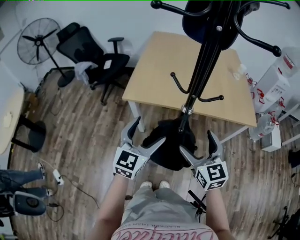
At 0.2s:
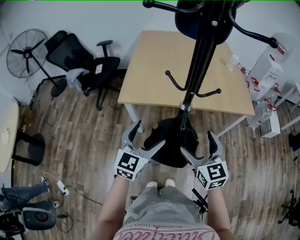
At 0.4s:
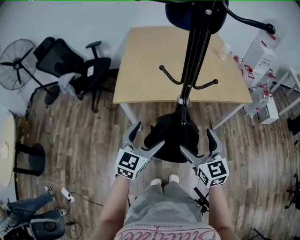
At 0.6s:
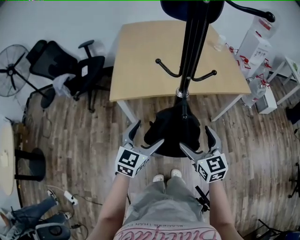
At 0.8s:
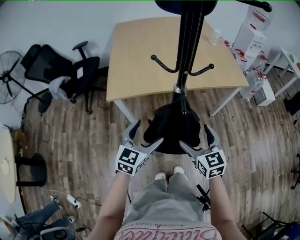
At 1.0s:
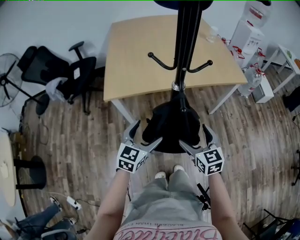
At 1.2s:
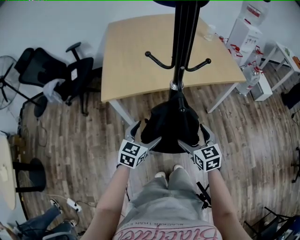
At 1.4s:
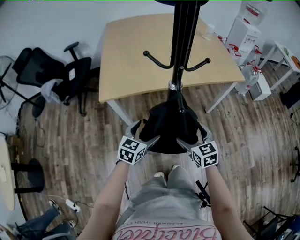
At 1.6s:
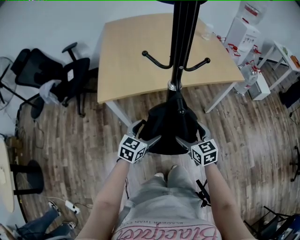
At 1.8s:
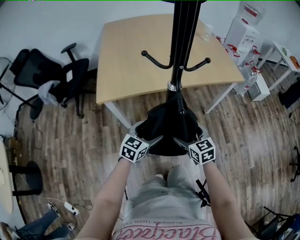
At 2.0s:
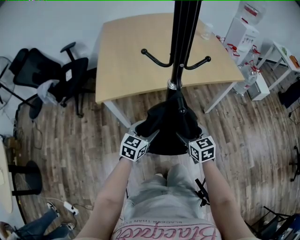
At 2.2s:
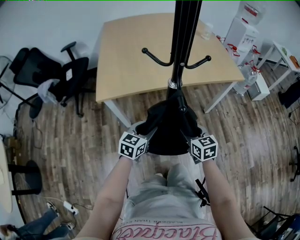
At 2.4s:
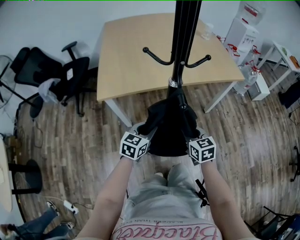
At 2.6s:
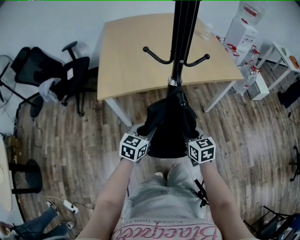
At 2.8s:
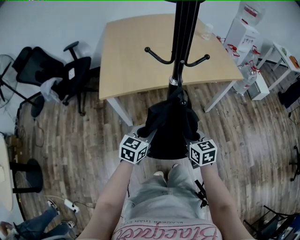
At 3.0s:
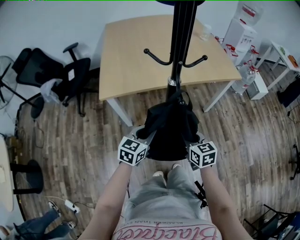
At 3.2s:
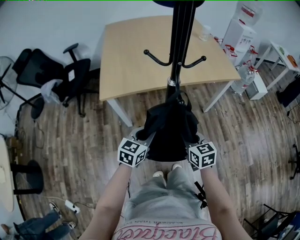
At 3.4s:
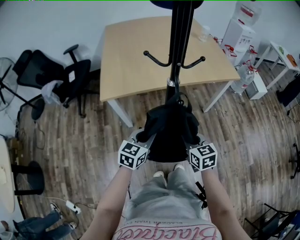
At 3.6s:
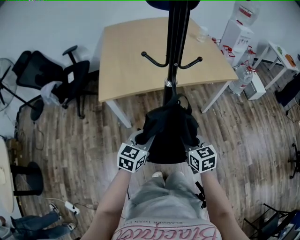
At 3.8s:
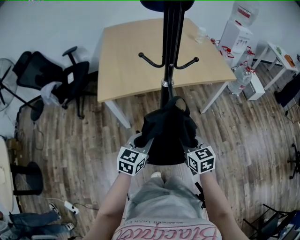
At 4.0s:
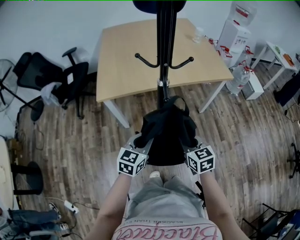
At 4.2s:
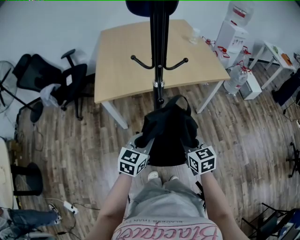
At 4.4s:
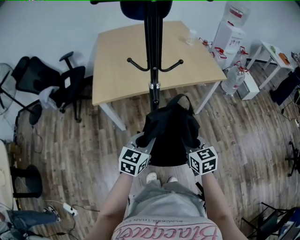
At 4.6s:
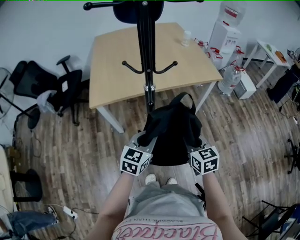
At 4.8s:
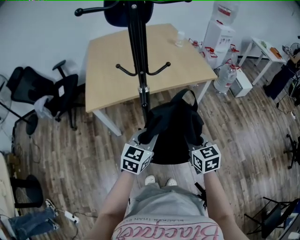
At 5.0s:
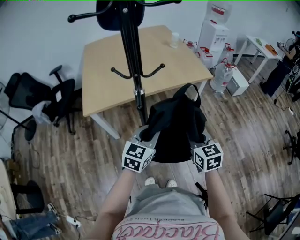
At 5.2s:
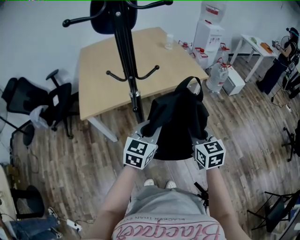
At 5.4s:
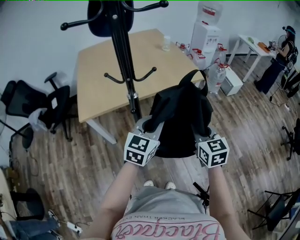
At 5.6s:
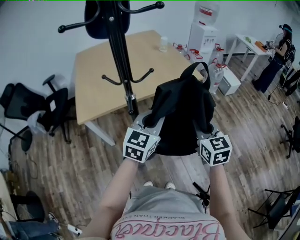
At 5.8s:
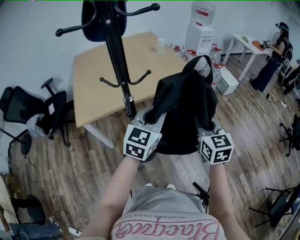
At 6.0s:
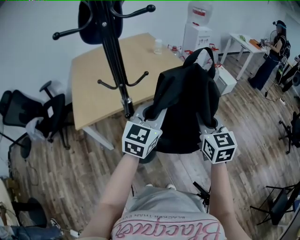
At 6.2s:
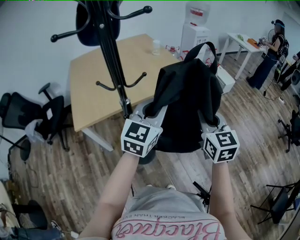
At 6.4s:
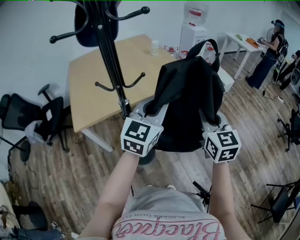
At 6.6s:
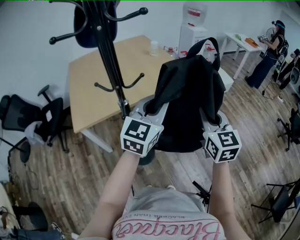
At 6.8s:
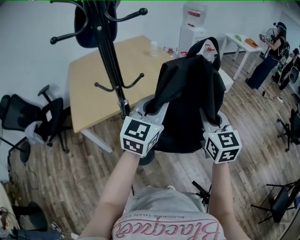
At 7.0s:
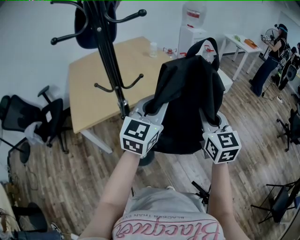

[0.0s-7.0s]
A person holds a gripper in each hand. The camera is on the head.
0.0s to 1.4s: The grippers both shift downward by some 20 cm. The right gripper changes its angle by roughly 20 degrees. Meanwhile the left gripper changes its angle by about 30 degrees.
1.4s to 2.8s: The left gripper closes up; the right gripper closes up.
2.8s to 4.2s: Both grippers travel together upward and backward, some 10 cm.
4.2s to 5.6s: The left gripper goes approximately 20 cm upward, to the right and forward, and swivels about 20 degrees. The right gripper is displaced upward and to the right by roughly 20 cm, and swivels approximately 20 degrees.
5.6s to 7.0s: The two grippers go roughly 10 cm upward.

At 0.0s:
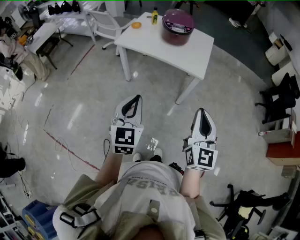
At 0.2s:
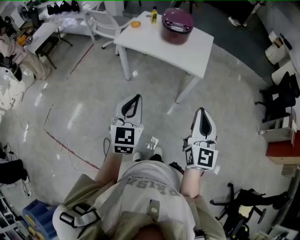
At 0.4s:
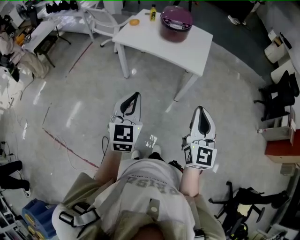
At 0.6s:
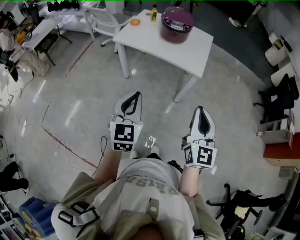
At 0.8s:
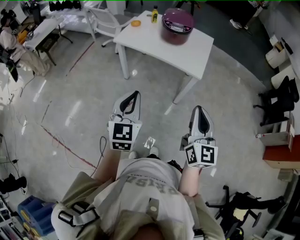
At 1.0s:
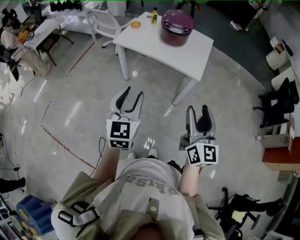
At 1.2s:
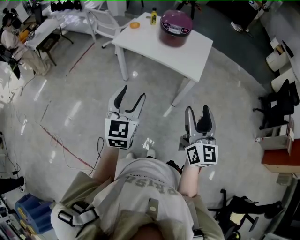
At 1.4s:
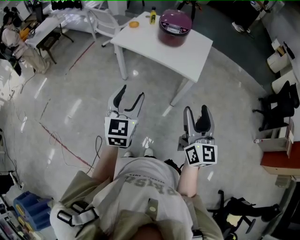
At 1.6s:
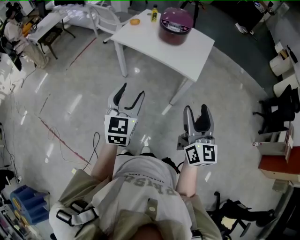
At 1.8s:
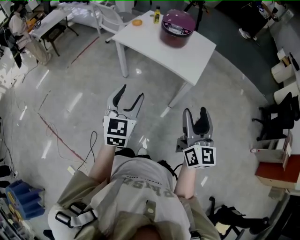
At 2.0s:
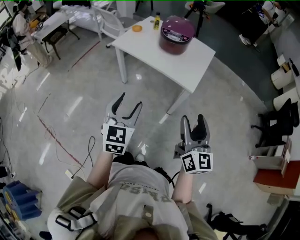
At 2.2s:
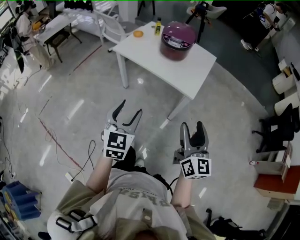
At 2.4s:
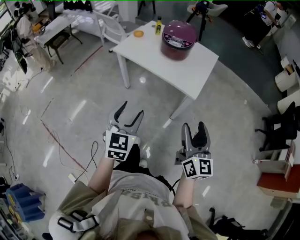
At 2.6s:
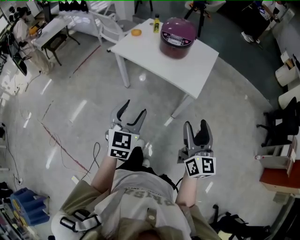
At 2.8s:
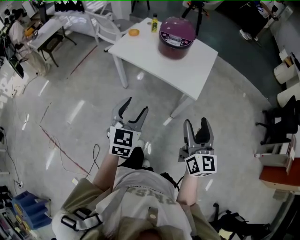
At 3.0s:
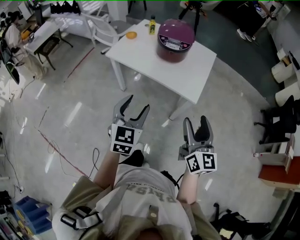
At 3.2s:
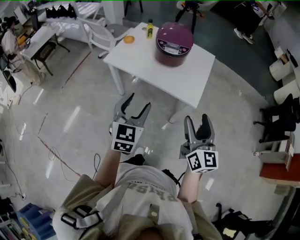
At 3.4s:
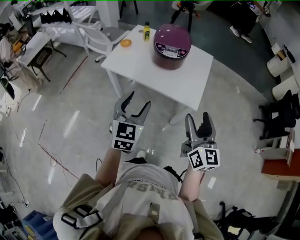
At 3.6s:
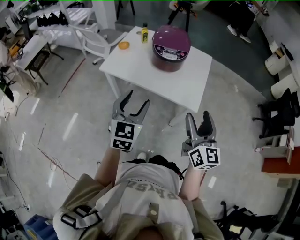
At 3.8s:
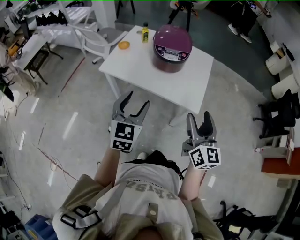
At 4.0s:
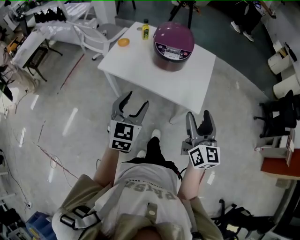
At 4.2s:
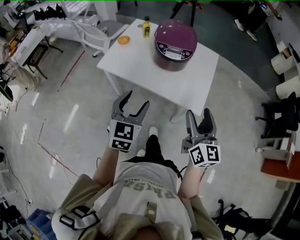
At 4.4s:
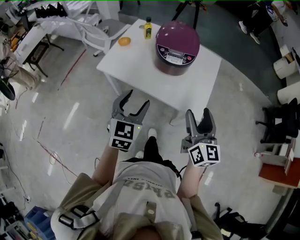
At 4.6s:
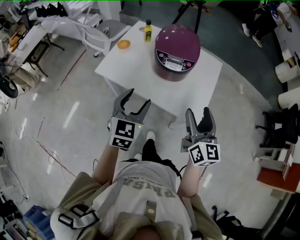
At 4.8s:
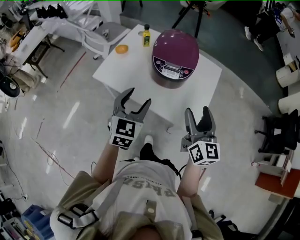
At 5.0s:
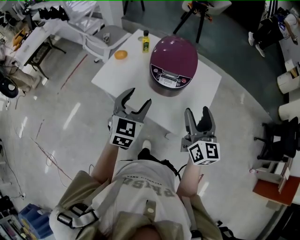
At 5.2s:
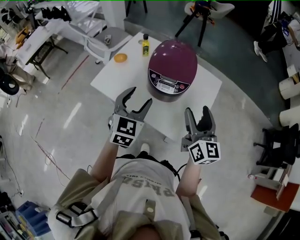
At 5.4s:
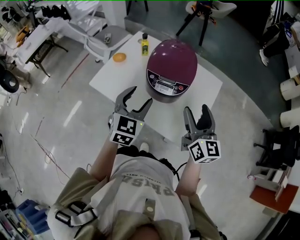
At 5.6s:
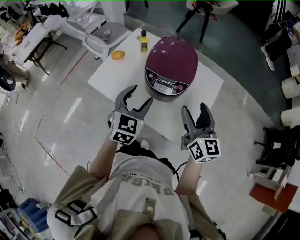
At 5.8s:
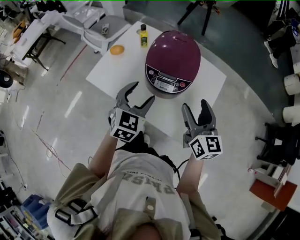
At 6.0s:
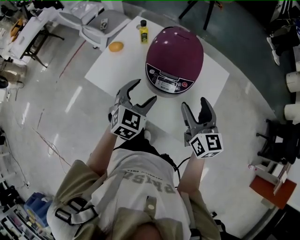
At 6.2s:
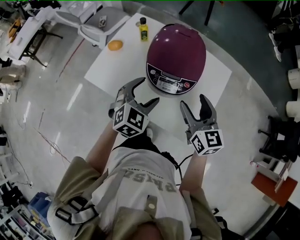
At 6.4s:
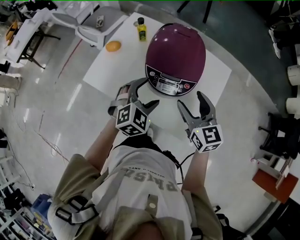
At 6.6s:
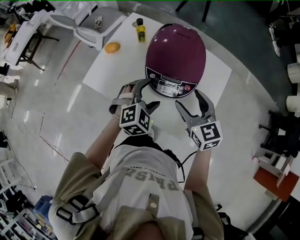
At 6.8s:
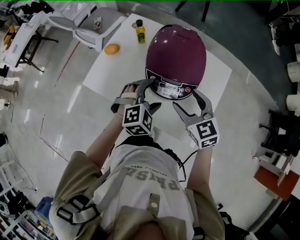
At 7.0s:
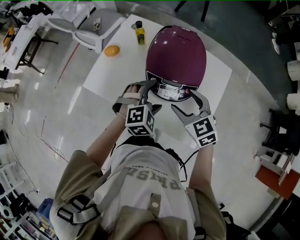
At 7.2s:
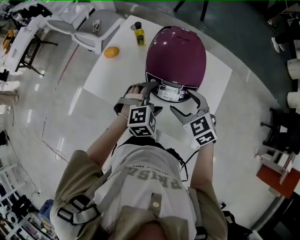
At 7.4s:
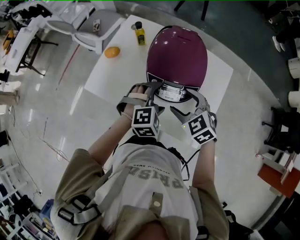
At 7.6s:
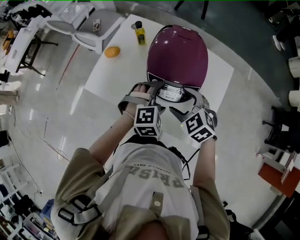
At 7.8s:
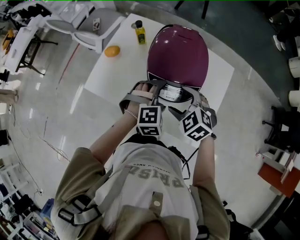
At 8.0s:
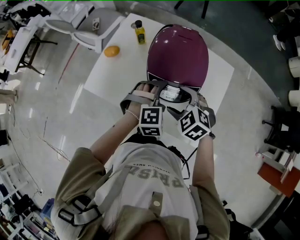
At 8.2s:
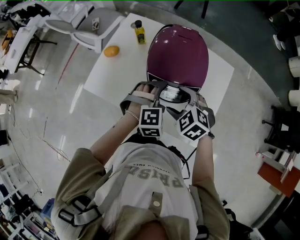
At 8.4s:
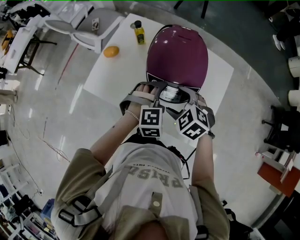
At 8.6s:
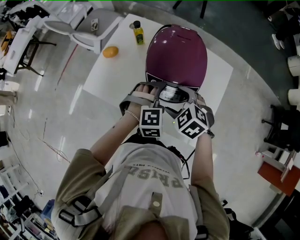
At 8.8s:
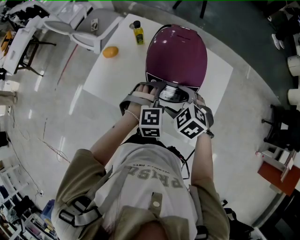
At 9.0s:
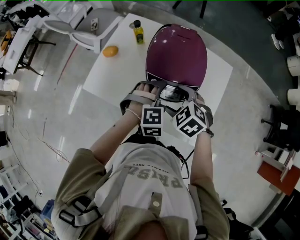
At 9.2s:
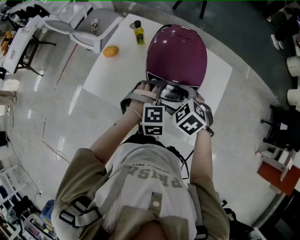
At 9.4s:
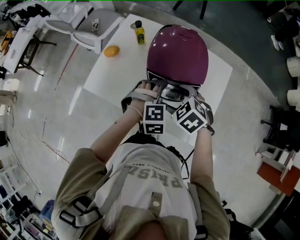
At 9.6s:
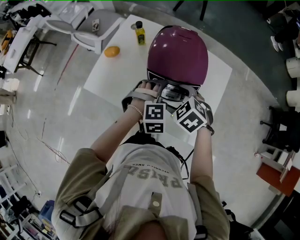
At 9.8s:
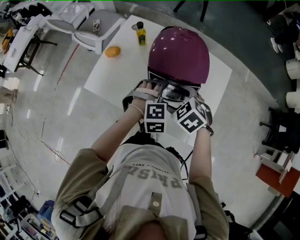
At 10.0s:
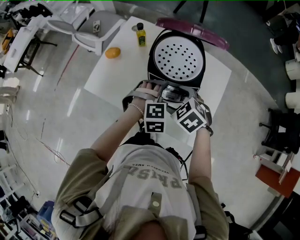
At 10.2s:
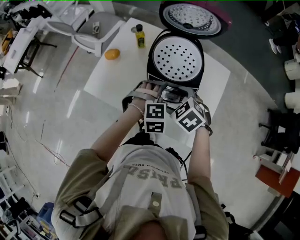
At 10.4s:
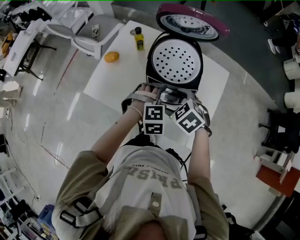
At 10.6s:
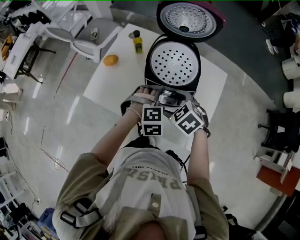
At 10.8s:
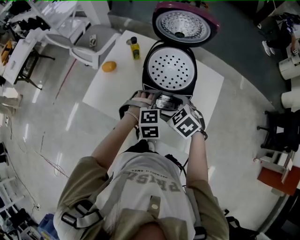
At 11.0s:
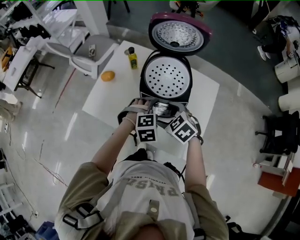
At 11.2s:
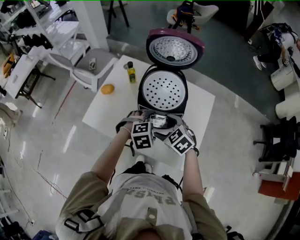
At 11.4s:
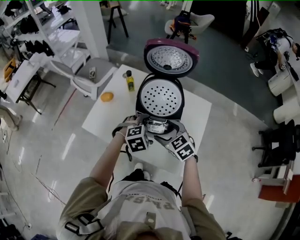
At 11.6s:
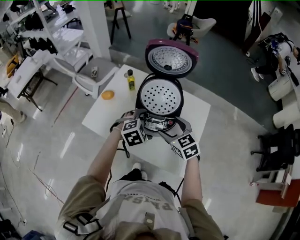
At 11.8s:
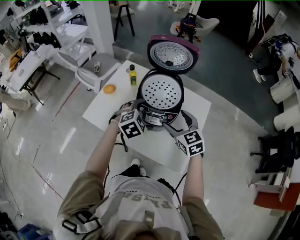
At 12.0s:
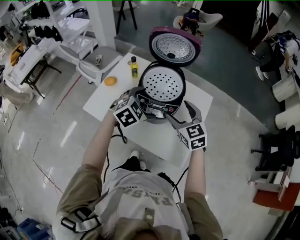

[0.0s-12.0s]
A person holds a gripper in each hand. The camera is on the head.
0.0s to 1.6s: The left gripper heads to the right, covering about 5 cm, and opens; the right gripper shifts some 10 cm to the right and forward, and opens its fingers.
1.6s to 3.0s: Both grippers travel together forward, some 15 cm.
3.0s to 4.4s: The grippers both shift forward by roughly 20 cm.
4.4s to 6.0s: The two grippers go some 25 cm forward.
6.0s to 7.6s: The right gripper heads downward and to the left, covering about 15 cm, and tilts its fingers approximately 40 degrees downward; the left gripper heads downward and to the right, covering about 10 cm, and changes its angle by some 50 degrees.
7.6s to 10.4s: There are only small adjustments of the grippers.
10.4s to 12.0s: The right gripper moves upward and to the right, about 15 cm, and angles its fingers upward, by approximately 40 degrees, while the left gripper moves upward, roughly 10 cm, and turns by approximately 30 degrees.

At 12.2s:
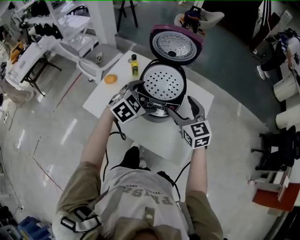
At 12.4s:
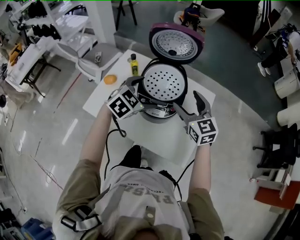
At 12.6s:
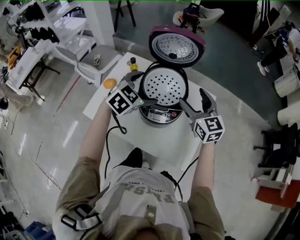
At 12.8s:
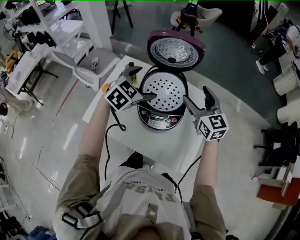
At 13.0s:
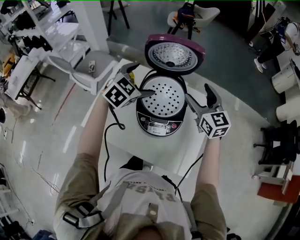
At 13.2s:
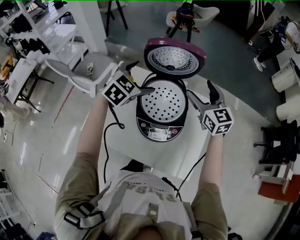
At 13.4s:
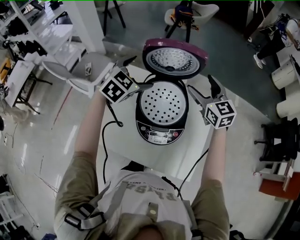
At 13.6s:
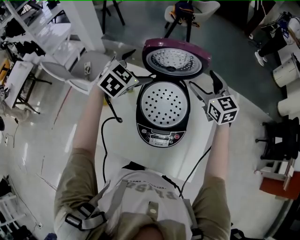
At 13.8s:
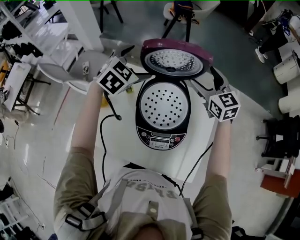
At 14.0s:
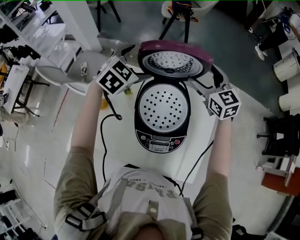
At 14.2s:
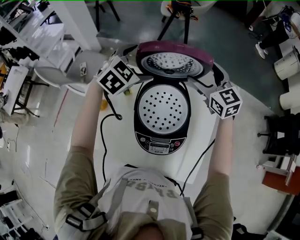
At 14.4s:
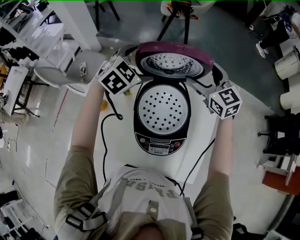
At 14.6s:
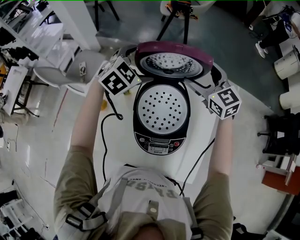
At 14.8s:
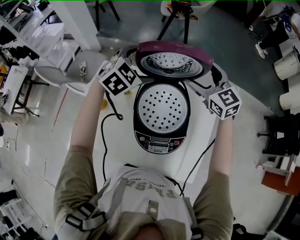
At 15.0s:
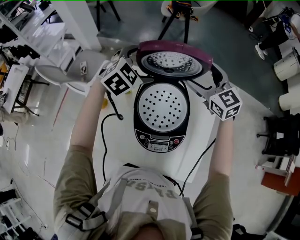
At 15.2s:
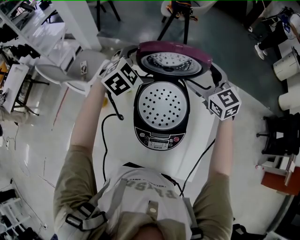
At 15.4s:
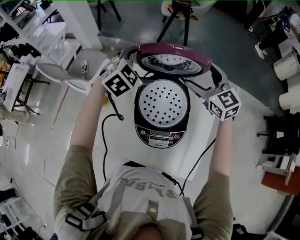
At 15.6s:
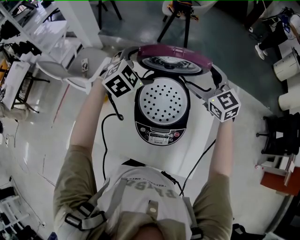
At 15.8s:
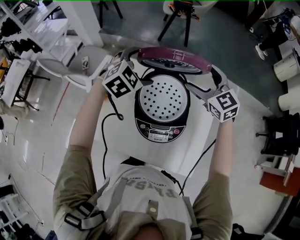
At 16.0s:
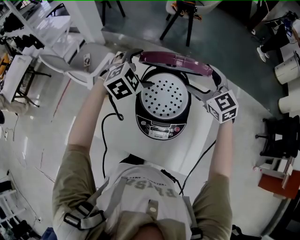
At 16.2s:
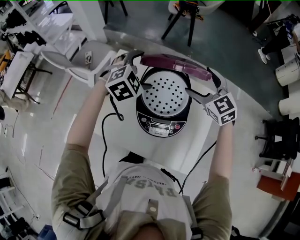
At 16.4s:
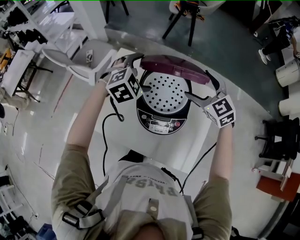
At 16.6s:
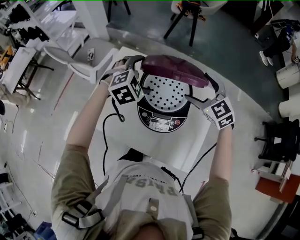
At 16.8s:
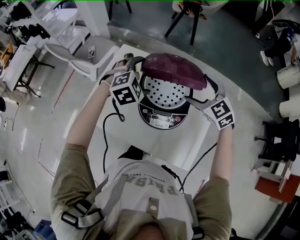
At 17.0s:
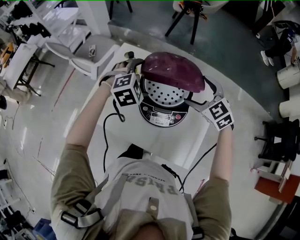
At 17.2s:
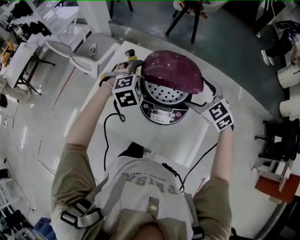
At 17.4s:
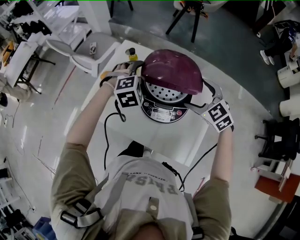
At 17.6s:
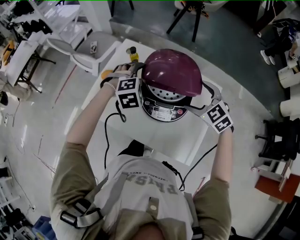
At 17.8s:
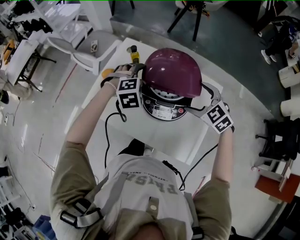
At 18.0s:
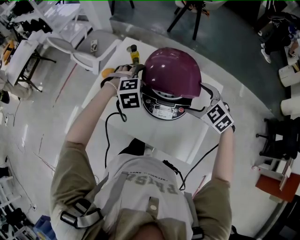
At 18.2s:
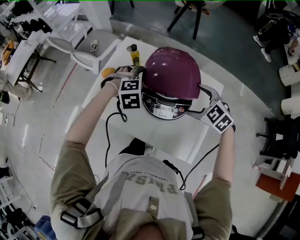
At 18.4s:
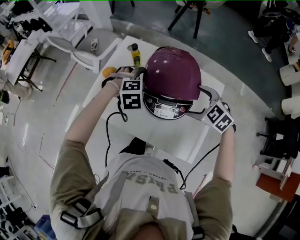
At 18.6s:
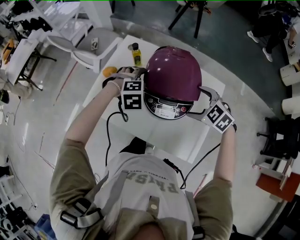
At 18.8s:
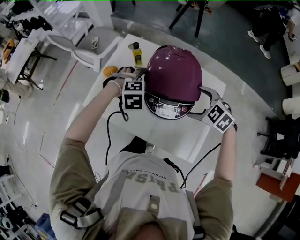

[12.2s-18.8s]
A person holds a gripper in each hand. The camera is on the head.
12.2s to 13.8s: Both grippers move forward, roughly 25 cm.
13.8s to 15.4s: The grippers move only a little.
15.4s to 17.2s: Both grippers travel together backward and downward, about 15 cm. The right gripper swivels approximately 30 degrees.
17.2s to 18.8s: The left gripper goes some 5 cm downward; the right gripper travels downward and backward by roughly 10 cm, and changes its angle by approximately 20 degrees.
